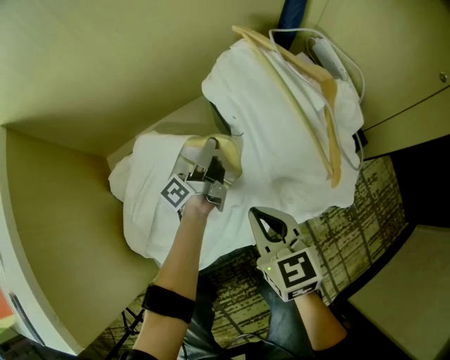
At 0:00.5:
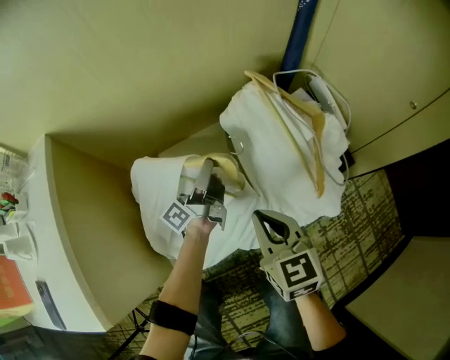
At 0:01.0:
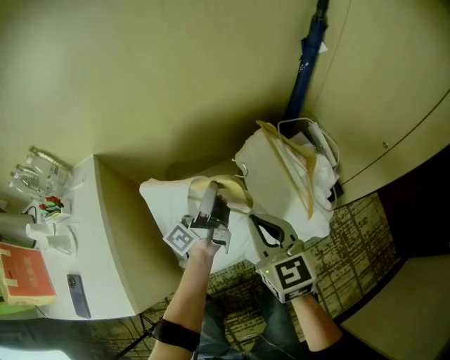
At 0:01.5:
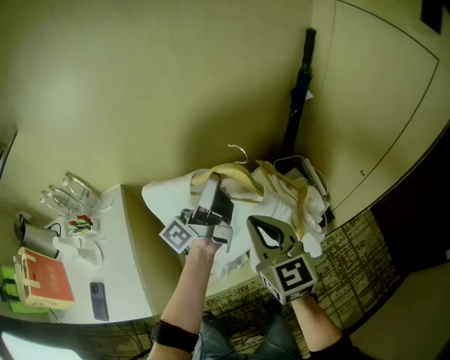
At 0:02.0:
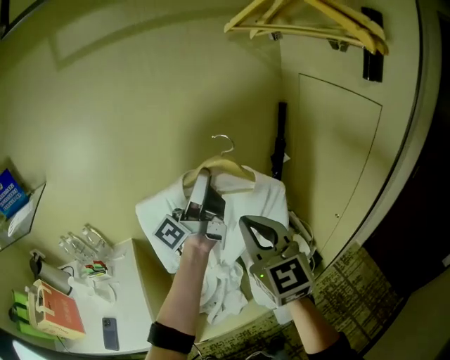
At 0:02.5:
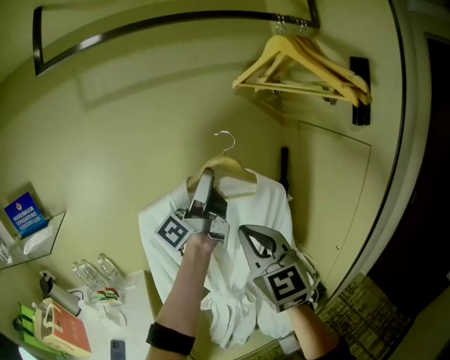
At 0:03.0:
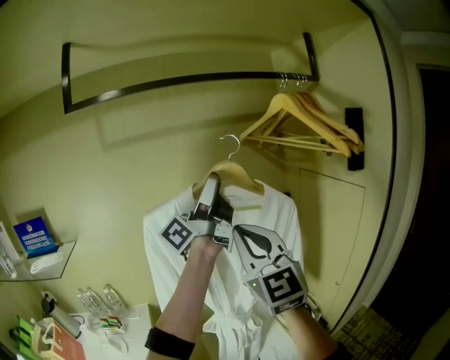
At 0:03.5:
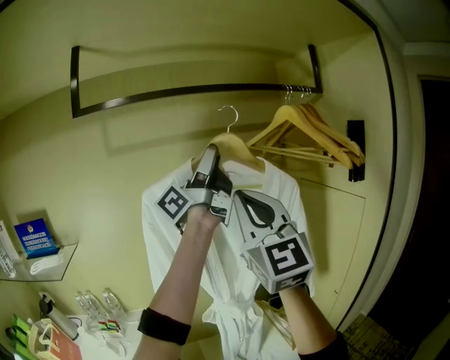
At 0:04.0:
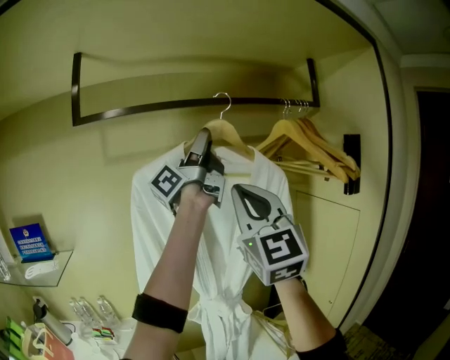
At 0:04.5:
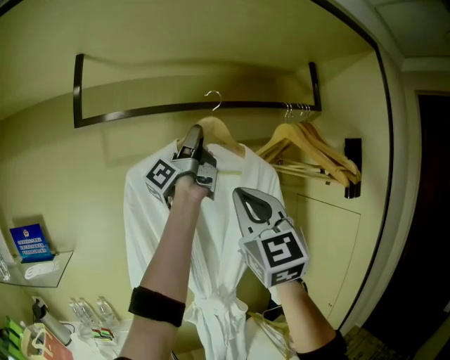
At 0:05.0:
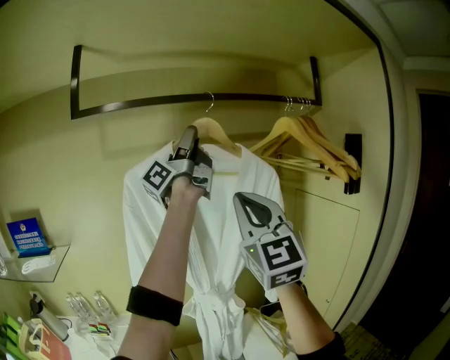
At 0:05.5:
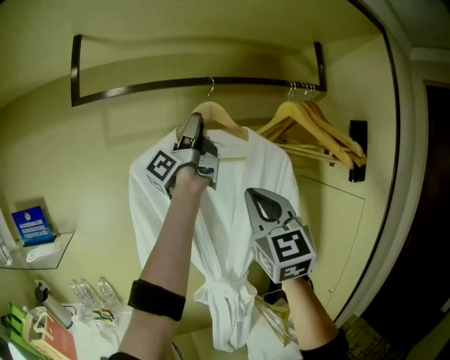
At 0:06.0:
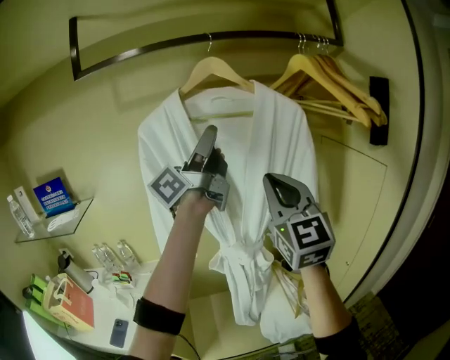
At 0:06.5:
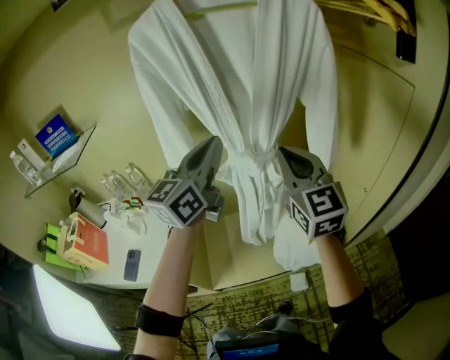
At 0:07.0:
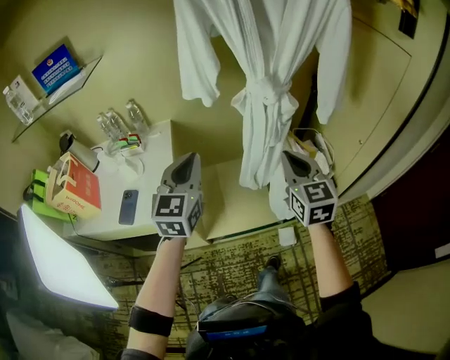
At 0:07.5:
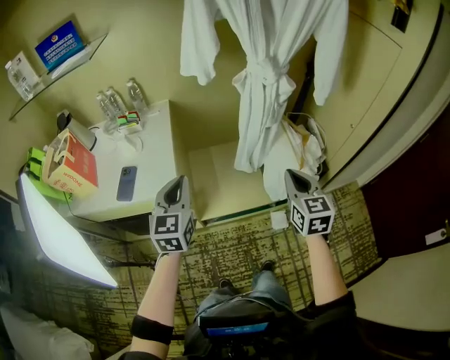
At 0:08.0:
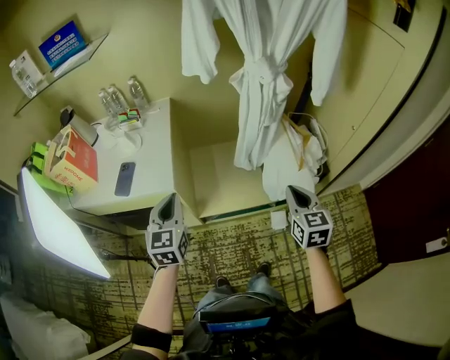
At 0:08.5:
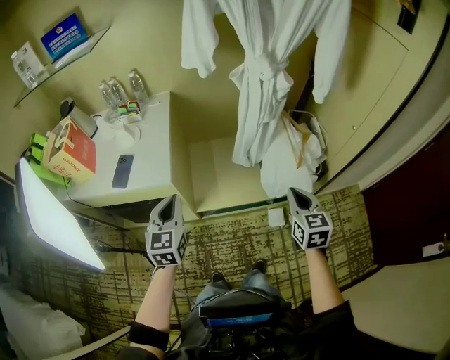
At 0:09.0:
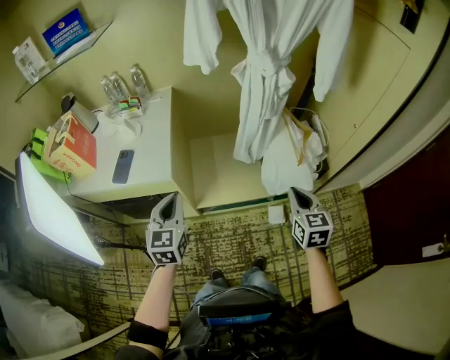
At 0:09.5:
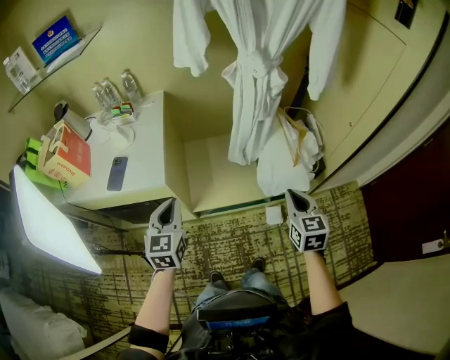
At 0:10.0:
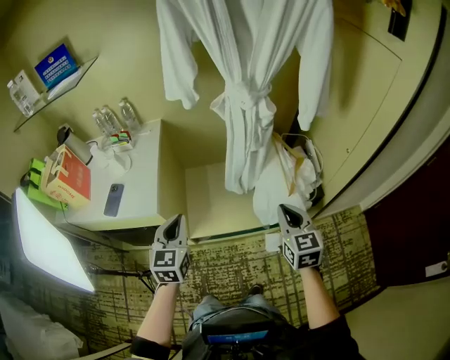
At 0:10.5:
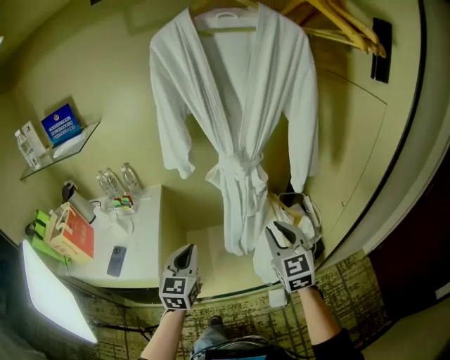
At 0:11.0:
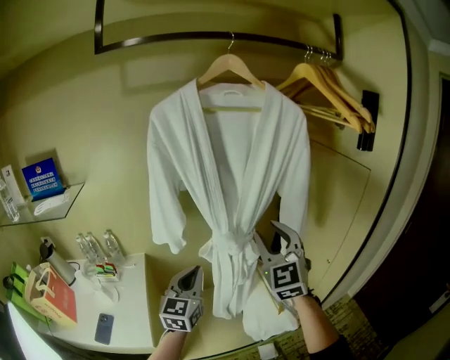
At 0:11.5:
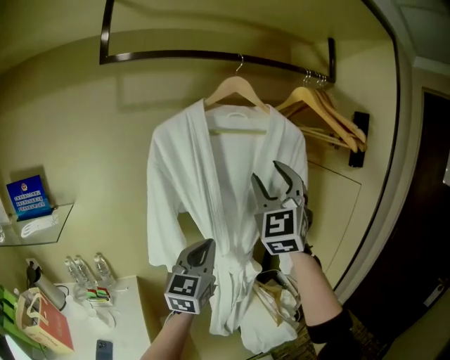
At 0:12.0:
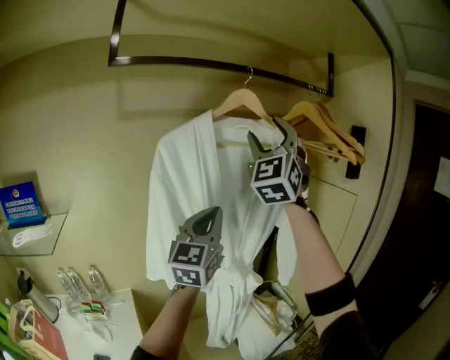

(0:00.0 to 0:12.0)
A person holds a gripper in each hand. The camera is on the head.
0:00.0 - 0:02.0: The grippers both shift upward by some 70 cm. The left gripper angles its fingers upward, by approximately 40 degrees, while the right gripper tips its fingers upward by roughly 40 degrees.
0:02.0 - 0:04.0: The grippers both shift upward by approximately 40 cm. The right gripper changes its angle by some 30 degrees.
0:04.0 - 0:06.0: Both grippers move downward, about 15 cm.
0:06.0 - 0:08.0: The right gripper travels downward and backward by some 60 cm, and tilts its fingers approximately 50 degrees downward; the left gripper shifts roughly 70 cm downward, backward and to the left, tips its fingers downward by about 60 degrees, and closes.
0:08.0 - 0:10.0: The right gripper goes roughly 5 cm to the right; the left gripper is displaced to the right by some 10 cm.
0:10.0 - 0:12.0: The grippers both shift upward by about 50 cm. The right gripper tips its fingers upward by roughly 50 degrees, and opens; the left gripper angles its fingers upward, by roughly 40 degrees.

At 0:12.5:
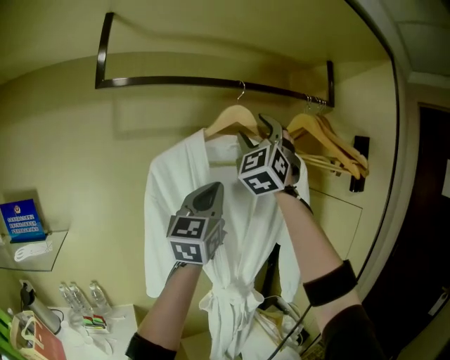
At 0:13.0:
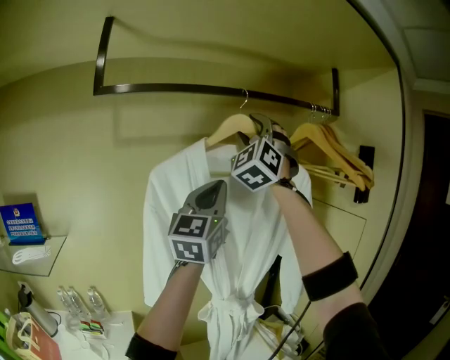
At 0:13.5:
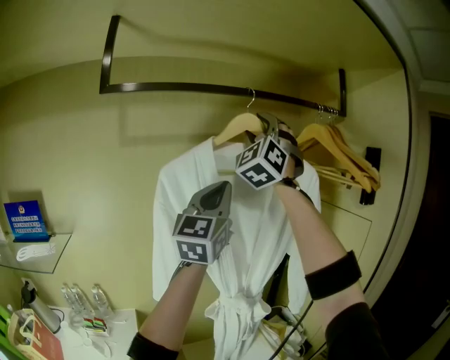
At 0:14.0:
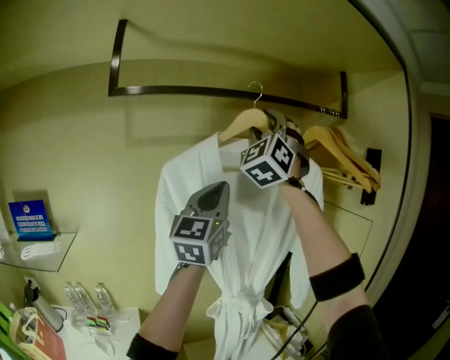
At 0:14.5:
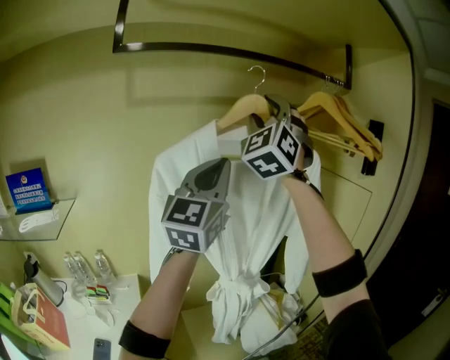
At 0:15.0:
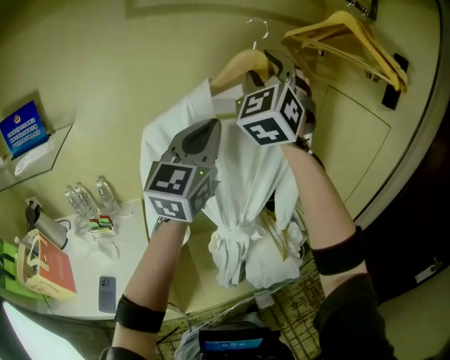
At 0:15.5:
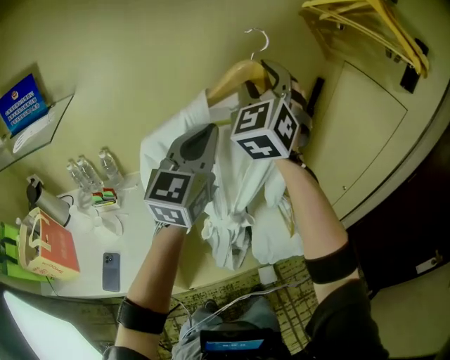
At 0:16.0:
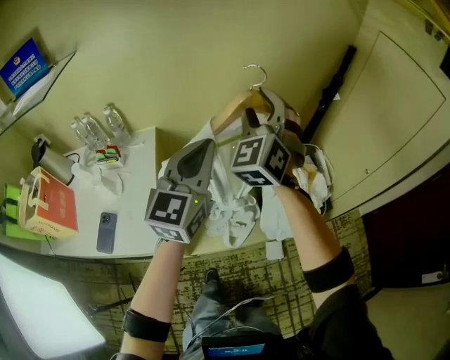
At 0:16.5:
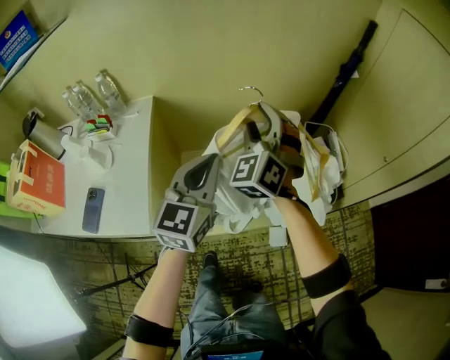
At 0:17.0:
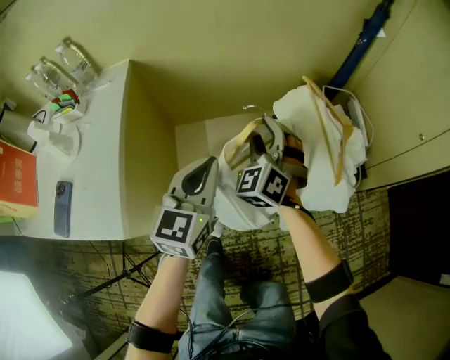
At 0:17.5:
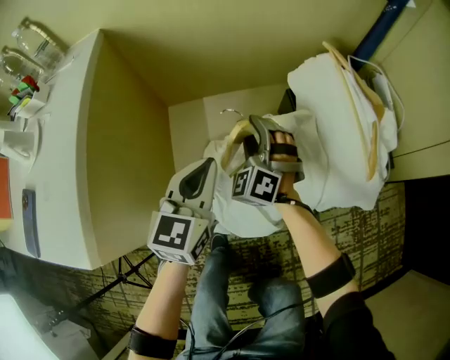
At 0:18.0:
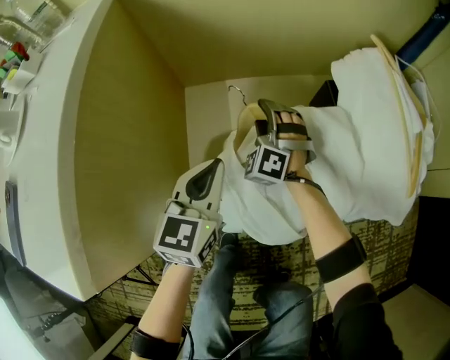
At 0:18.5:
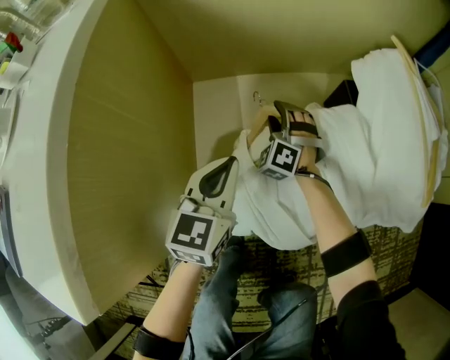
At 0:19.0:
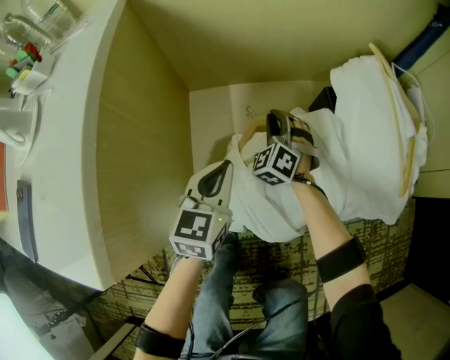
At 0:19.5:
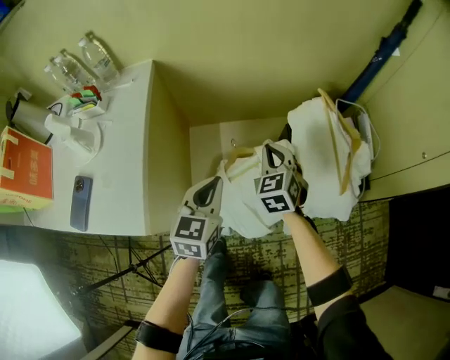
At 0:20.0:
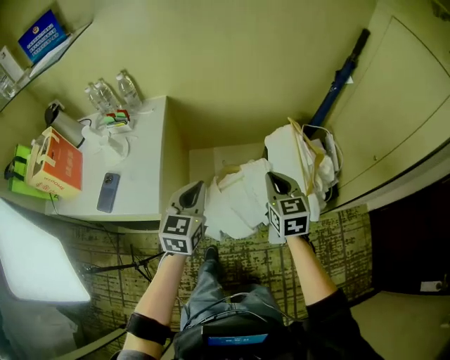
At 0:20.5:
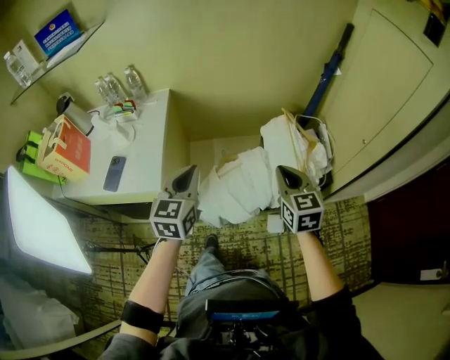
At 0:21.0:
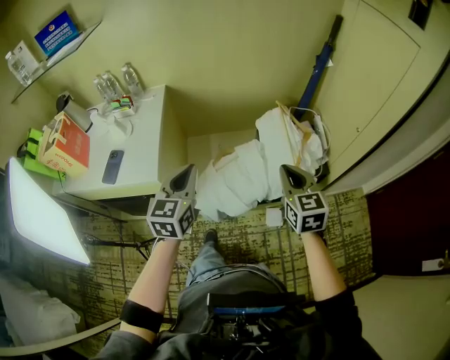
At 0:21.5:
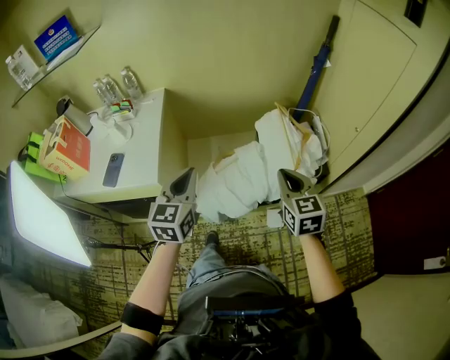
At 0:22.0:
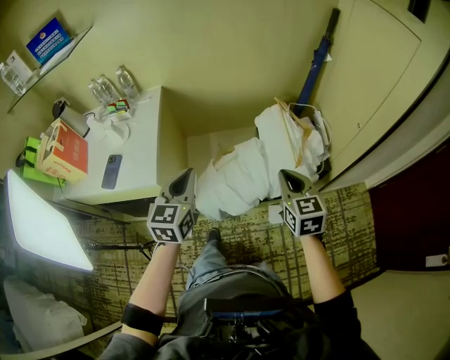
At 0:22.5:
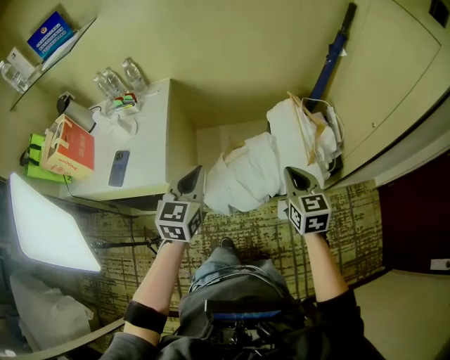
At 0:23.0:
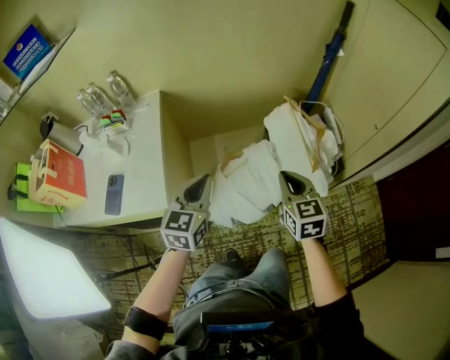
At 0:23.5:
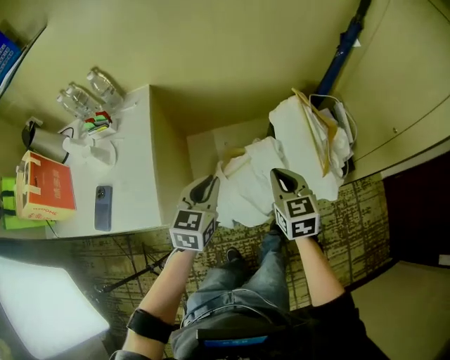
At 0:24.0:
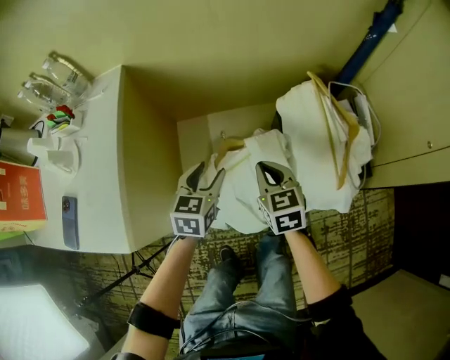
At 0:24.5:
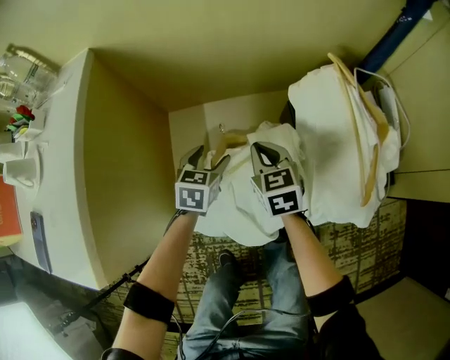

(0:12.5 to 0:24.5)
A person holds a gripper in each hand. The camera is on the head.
0:12.5 - 0:14.5: The left gripper moves backward, some 5 cm.
0:14.5 - 0:16.5: Both grippers travel together downward, about 60 cm. The right gripper tips its fingers downward by some 30 degrees. The left gripper swivels some 40 degrees.
0:16.5 - 0:18.5: Both grippers travel together downward, about 50 cm. The right gripper turns by some 30 degrees.
0:18.5 - 0:20.5: The two grippers go roughly 60 cm upward and backward. The right gripper rotates around the line of its fingers by roughly 60 degrees, clockwise from behind, and closes up.
0:20.5 - 0:22.5: The right gripper shifts by some 5 cm.
0:22.5 - 0:24.5: The two grippers go roughly 50 cm downward and forward. The left gripper swivels approximately 30 degrees, and opens.

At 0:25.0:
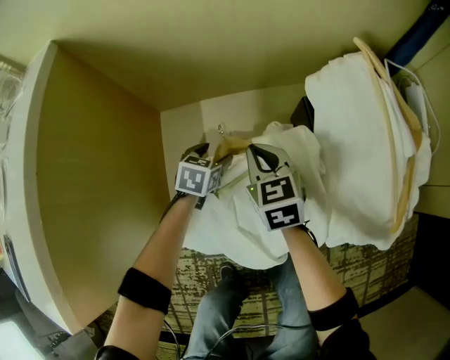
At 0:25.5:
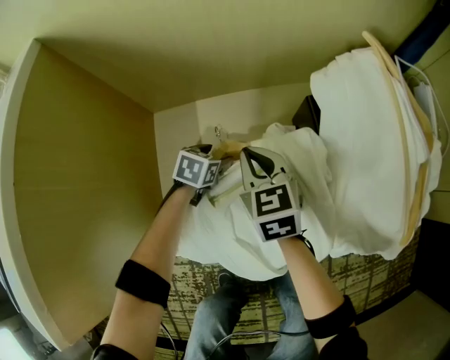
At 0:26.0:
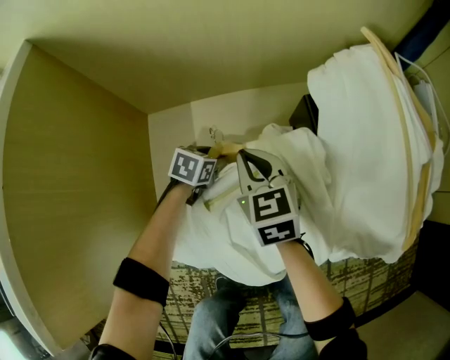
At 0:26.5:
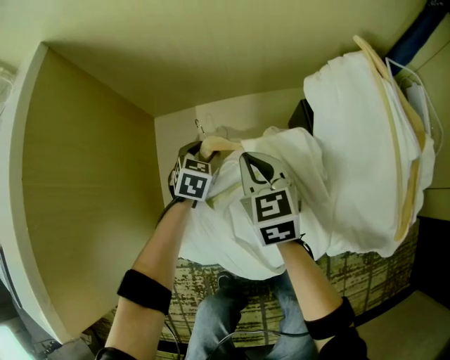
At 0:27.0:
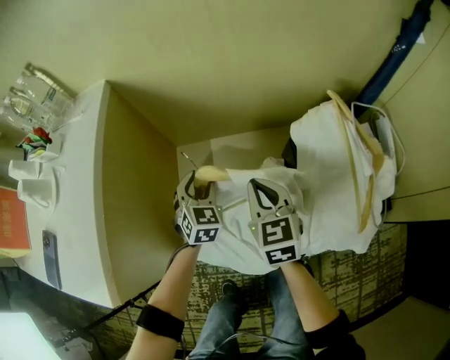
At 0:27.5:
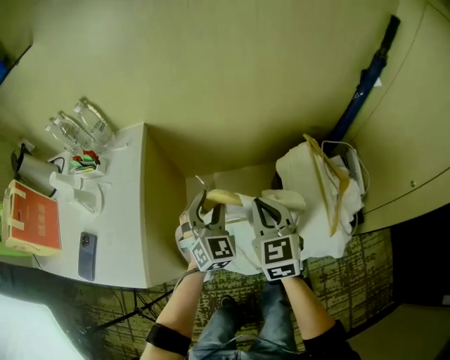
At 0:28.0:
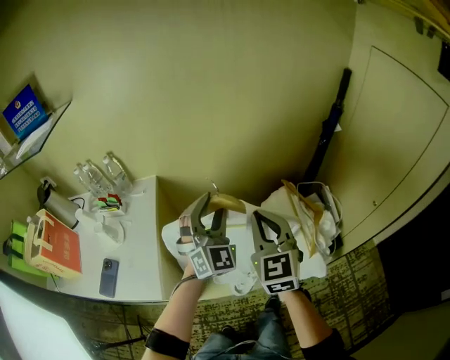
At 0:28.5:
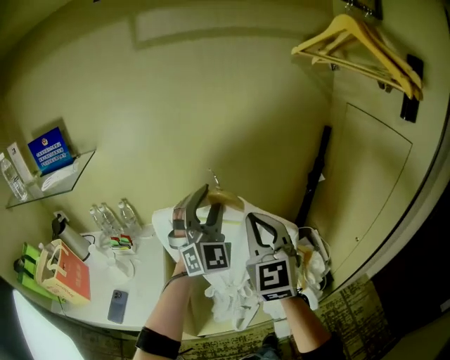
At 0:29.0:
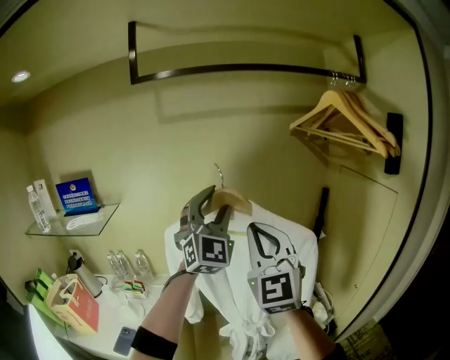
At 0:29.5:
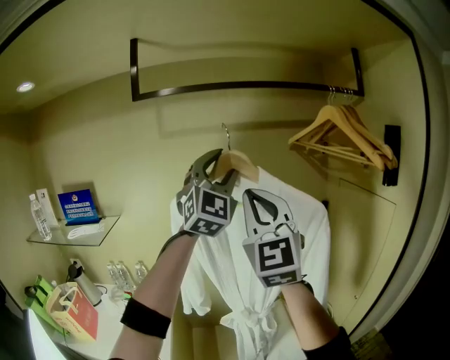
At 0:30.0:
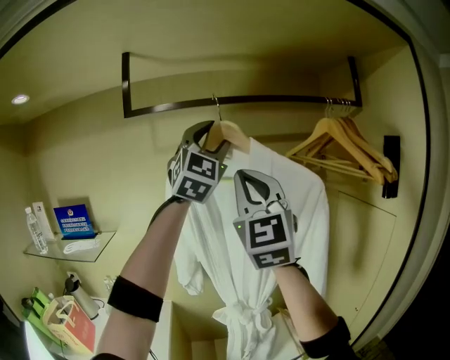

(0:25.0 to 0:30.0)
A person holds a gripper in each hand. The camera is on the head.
0:25.0 - 0:27.5: The two grippers go about 40 cm upward. The left gripper points its fingers approximately 30 degrees further upward, and closes.
0:27.5 - 0:30.0: Both grippers travel together upward, about 80 cm. The left gripper tilts its fingers roughly 40 degrees upward. The right gripper angles its fingers upward, by some 50 degrees.
